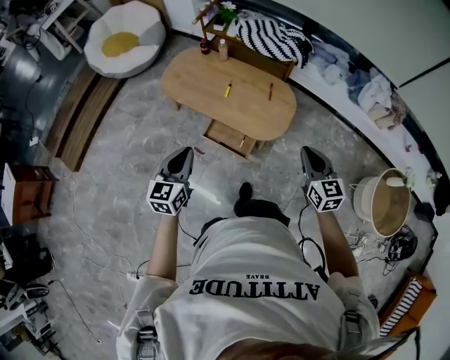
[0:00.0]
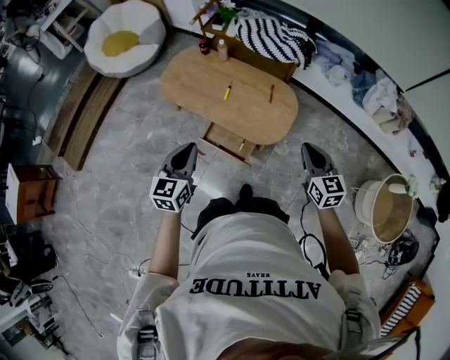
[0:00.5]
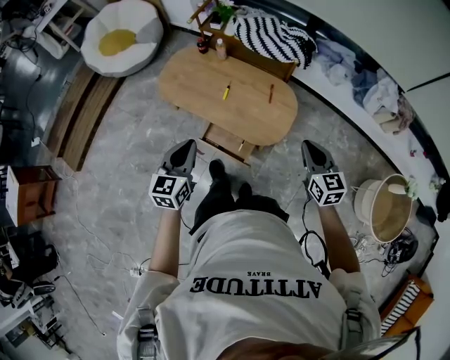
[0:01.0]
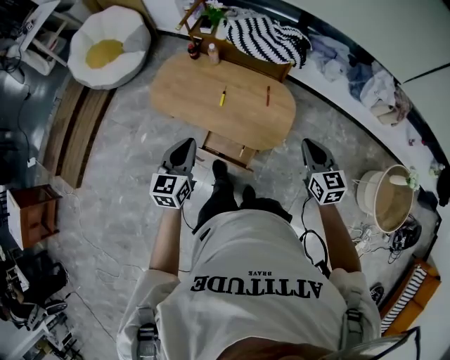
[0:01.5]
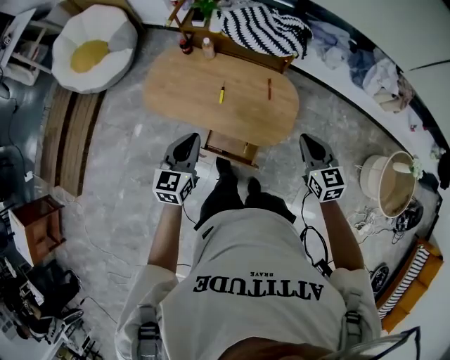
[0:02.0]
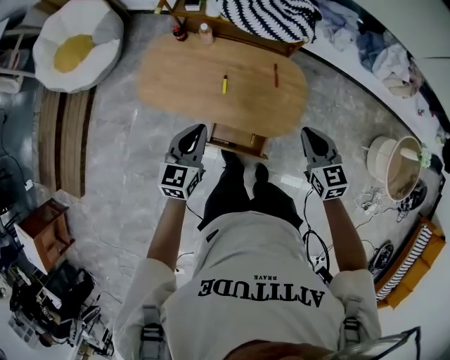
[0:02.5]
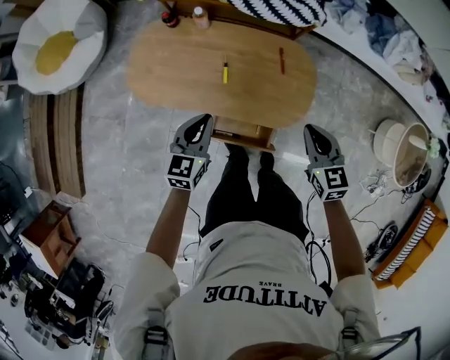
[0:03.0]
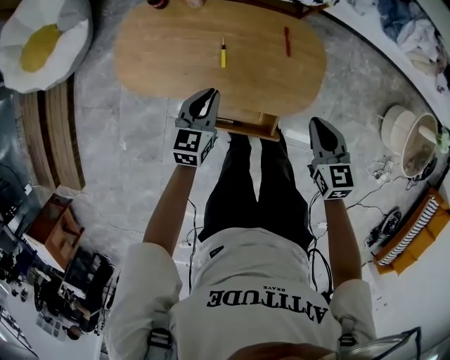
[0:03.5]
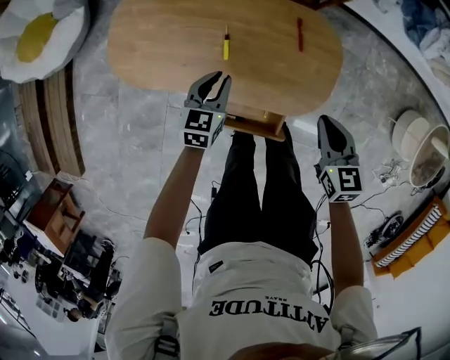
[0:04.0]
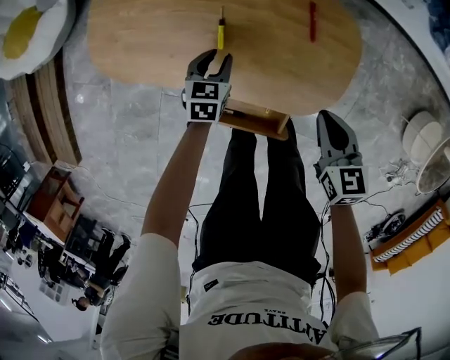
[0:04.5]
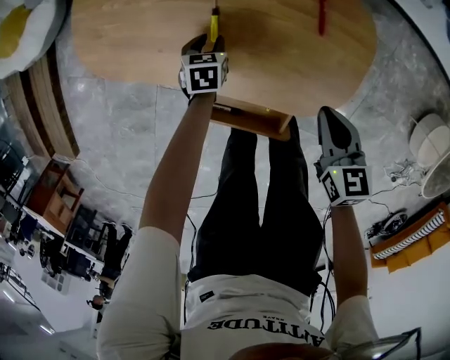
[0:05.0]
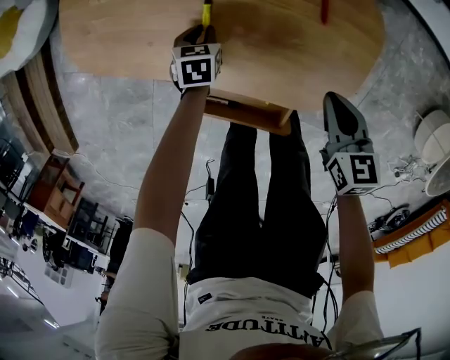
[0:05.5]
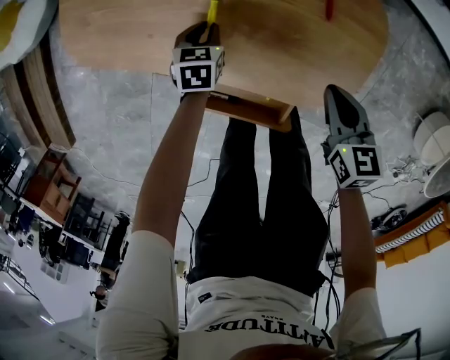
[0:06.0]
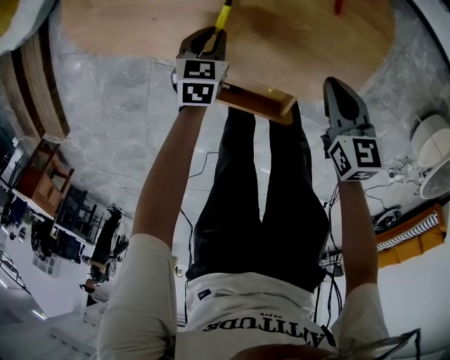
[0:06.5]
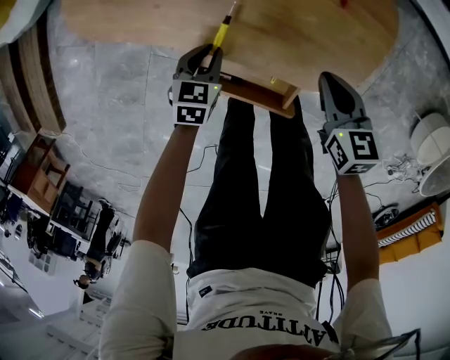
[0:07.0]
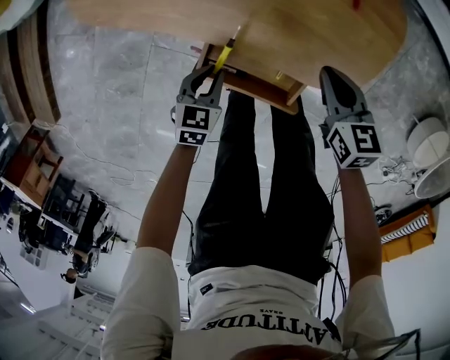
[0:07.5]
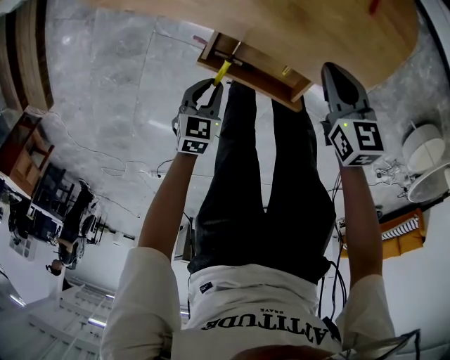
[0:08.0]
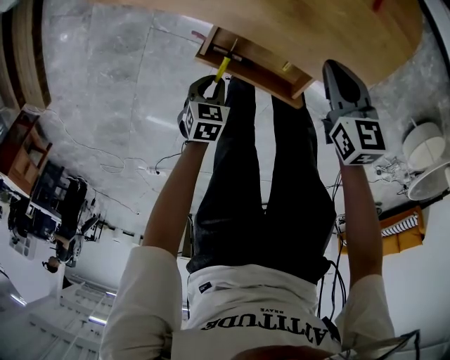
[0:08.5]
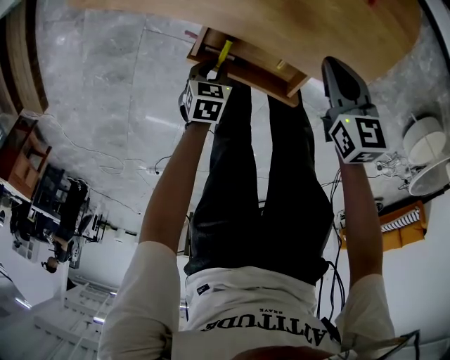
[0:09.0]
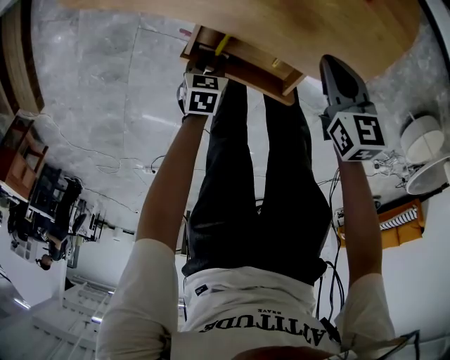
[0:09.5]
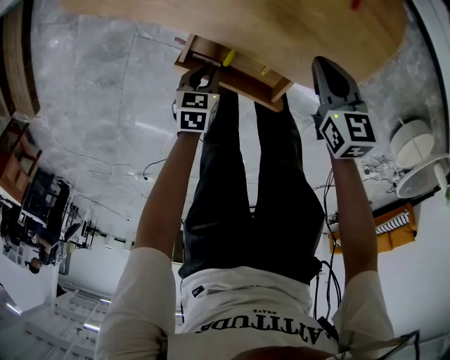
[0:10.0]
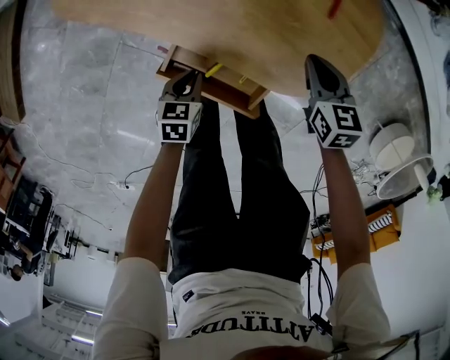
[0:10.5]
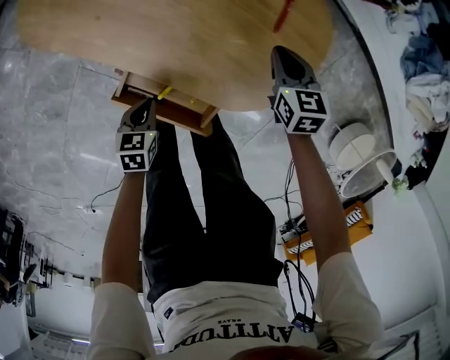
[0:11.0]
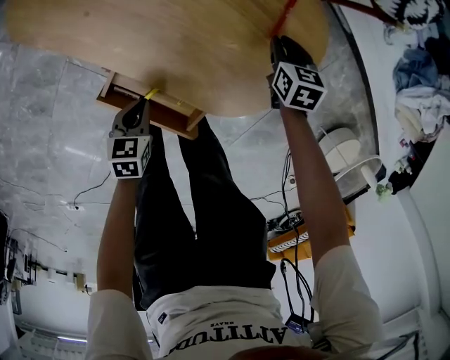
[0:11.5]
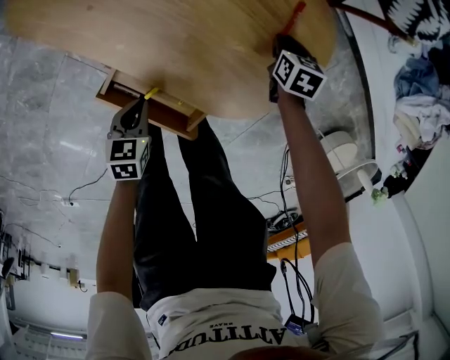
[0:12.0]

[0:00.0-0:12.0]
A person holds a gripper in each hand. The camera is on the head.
0:00.0 to 0:02.0: The grippers both shift forward by roughly 25 cm.
0:02.0 to 0:04.0: The left gripper is displaced downward and forward by some 40 cm, and swivels some 20 degrees. Meanwhile the right gripper heads downward, covering some 25 cm.
0:04.0 to 0:06.0: Both grippers travel together downward, some 25 cm. The left gripper swivels some 30 degrees.
0:06.0 to 0:08.0: The left gripper heads backward, covering roughly 30 cm; the right gripper is displaced to the left by some 10 cm.
0:08.0 to 0:10.0: The left gripper heads downward, covering approximately 5 cm.
0:10.0 to 0:12.0: The right gripper is displaced forward, downward and to the right by approximately 25 cm, and swivels approximately 20 degrees. Meanwhile the left gripper ends up approximately 5 cm from where it was.

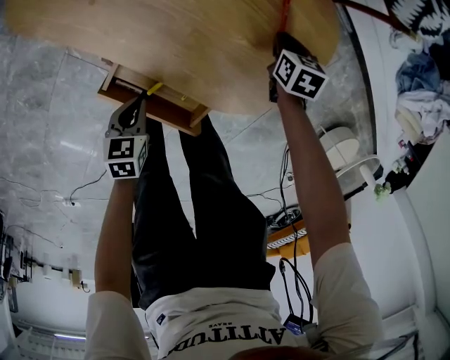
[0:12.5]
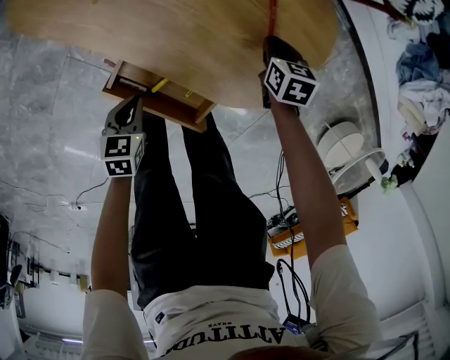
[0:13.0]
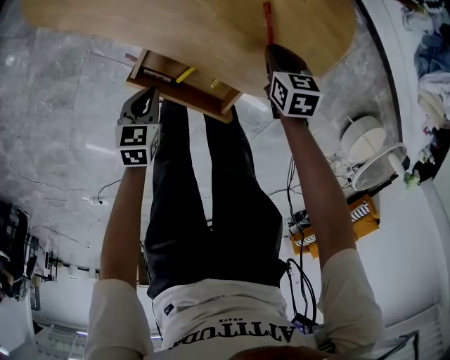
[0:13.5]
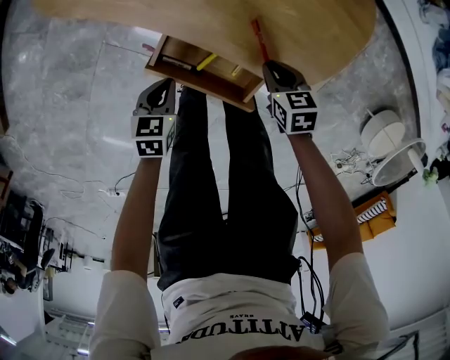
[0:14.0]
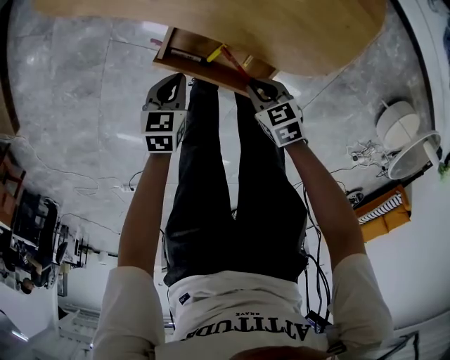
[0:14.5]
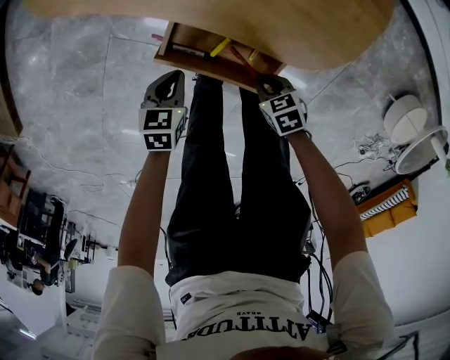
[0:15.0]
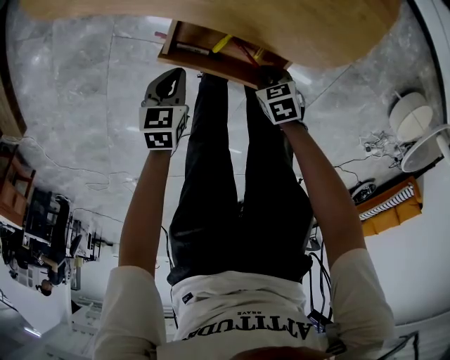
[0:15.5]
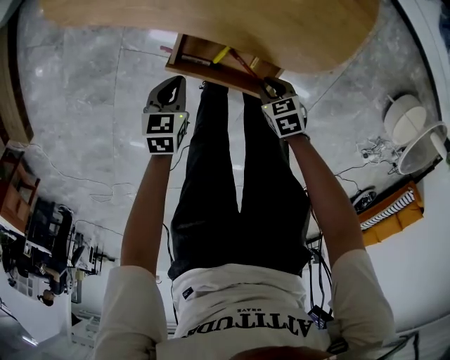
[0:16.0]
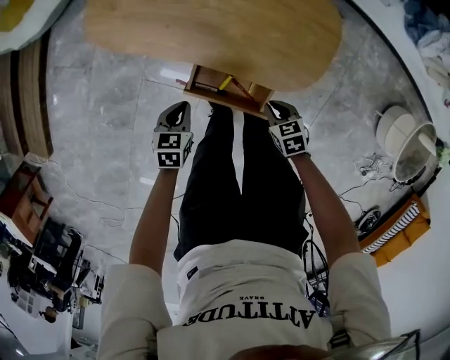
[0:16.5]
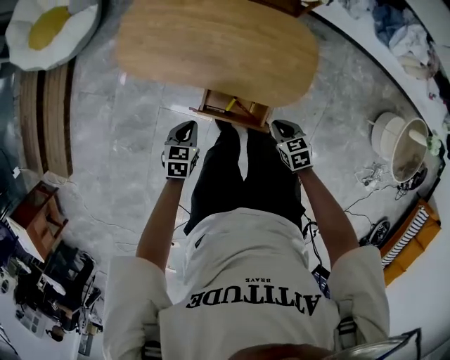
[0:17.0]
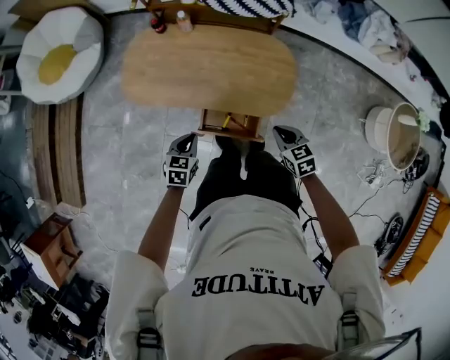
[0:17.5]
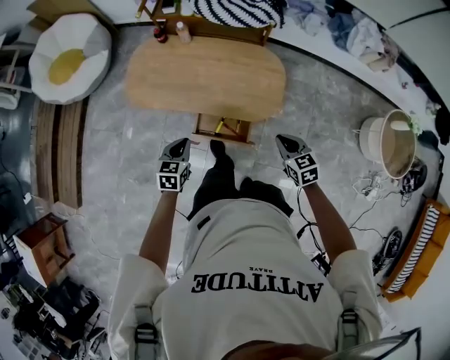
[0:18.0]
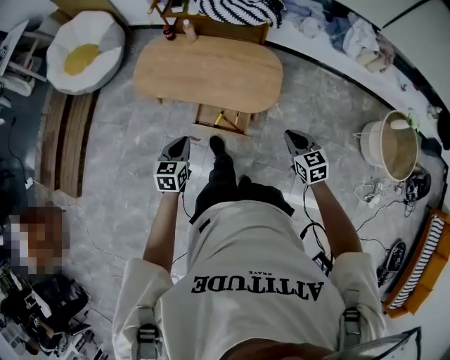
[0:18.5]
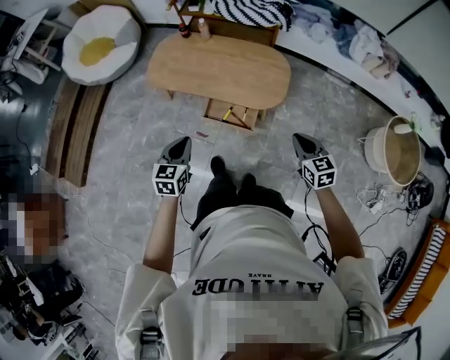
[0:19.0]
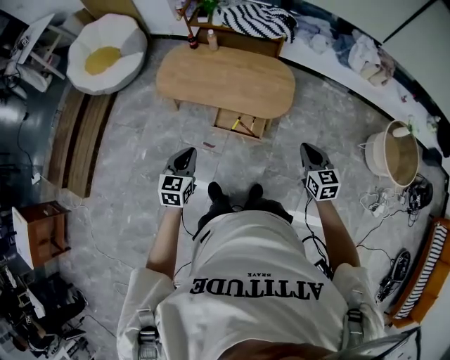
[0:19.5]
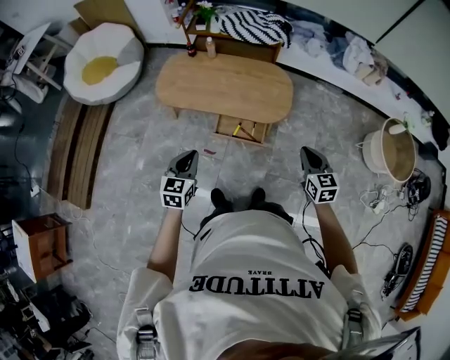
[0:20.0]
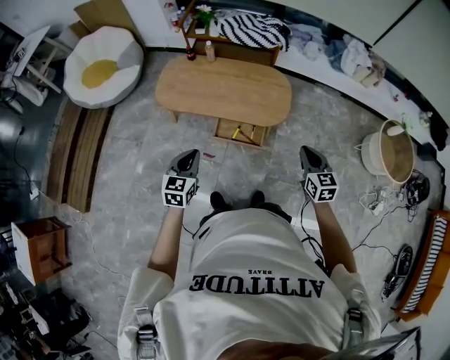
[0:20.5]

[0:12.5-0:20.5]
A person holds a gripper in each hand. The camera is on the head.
0:12.5 to 0:14.5: The left gripper is displaced to the left by about 5 cm, while the right gripper is displaced backward and to the left by some 35 cm, and changes its angle by approximately 30 degrees.
0:14.5 to 0:16.5: Both grippers move upward, some 15 cm.
0:16.5 to 0:18.5: Both grippers move upward and backward, approximately 40 cm. The right gripper turns by some 30 degrees. The left gripper rotates approximately 20 degrees.
0:18.5 to 0:20.5: The right gripper moves upward, backward and to the left, approximately 15 cm; the left gripper travels upward, to the left and backward by roughly 15 cm.

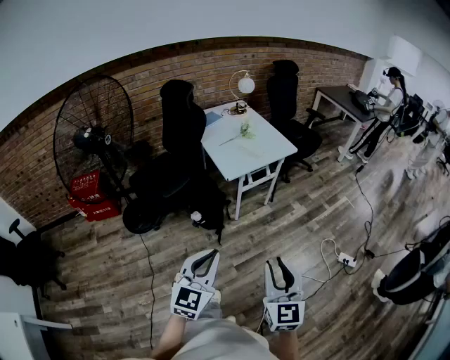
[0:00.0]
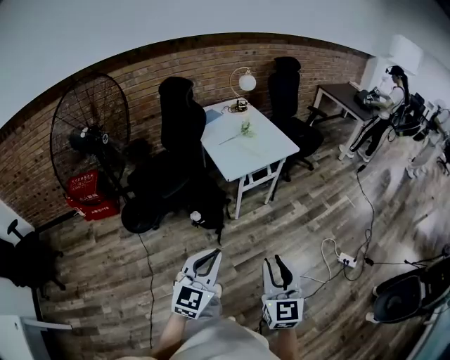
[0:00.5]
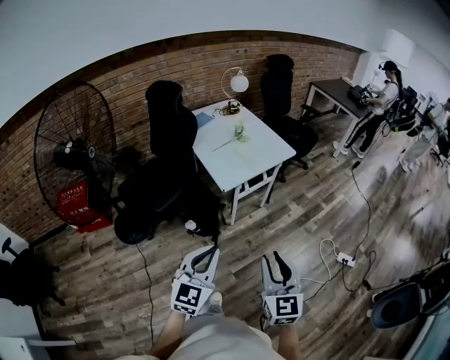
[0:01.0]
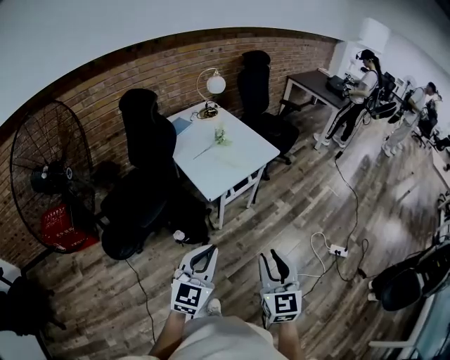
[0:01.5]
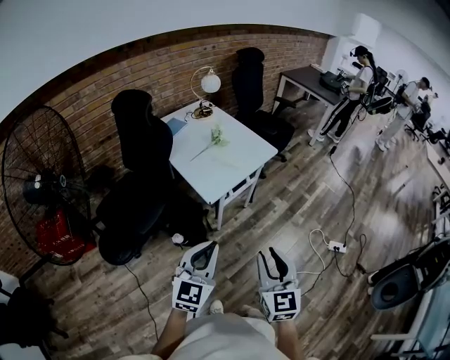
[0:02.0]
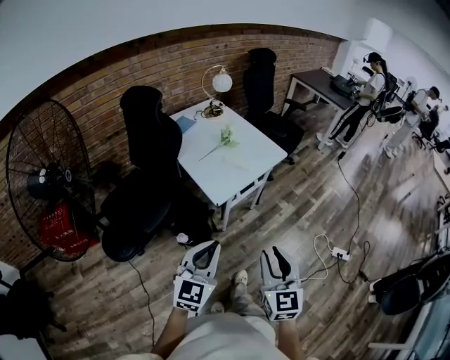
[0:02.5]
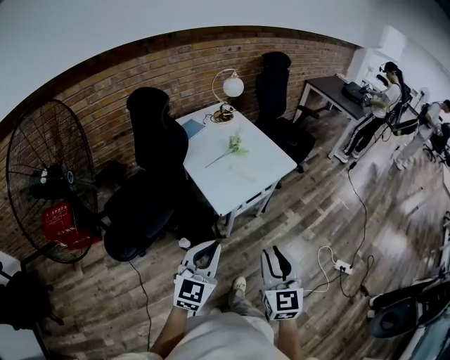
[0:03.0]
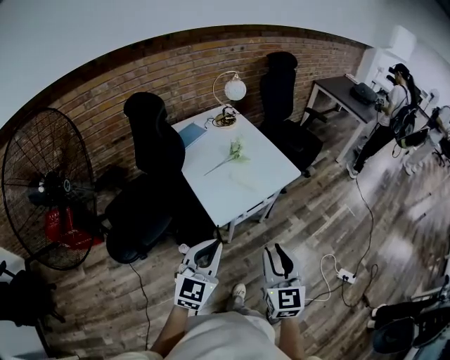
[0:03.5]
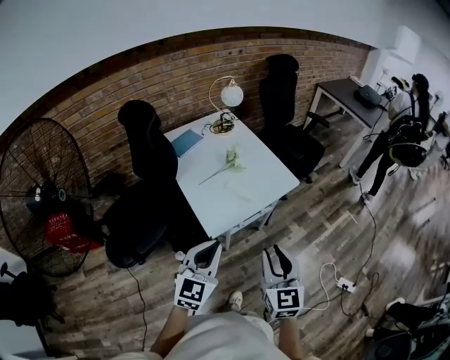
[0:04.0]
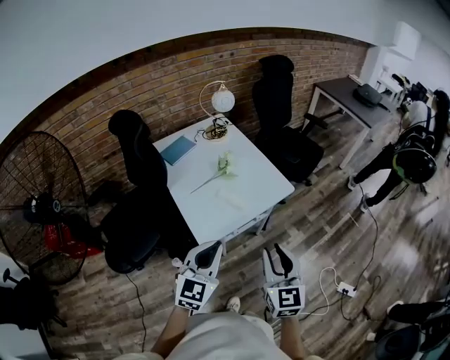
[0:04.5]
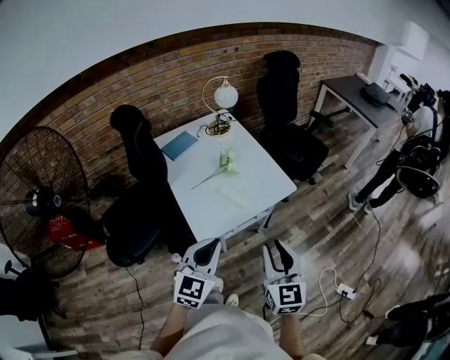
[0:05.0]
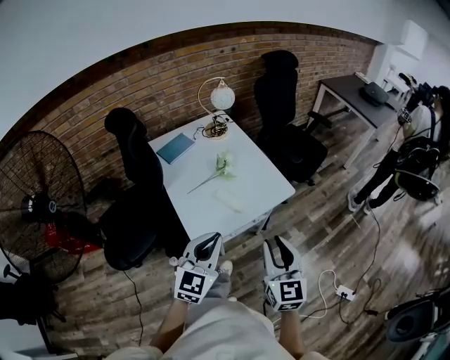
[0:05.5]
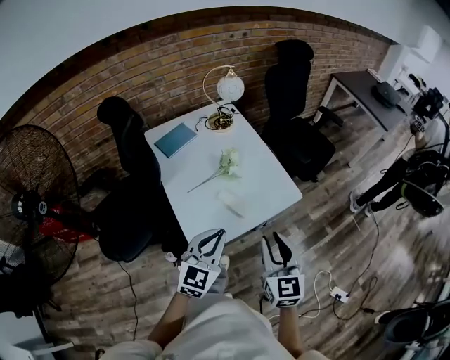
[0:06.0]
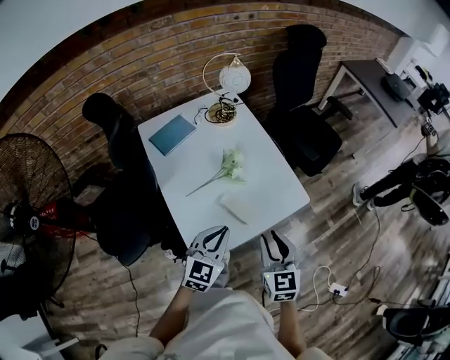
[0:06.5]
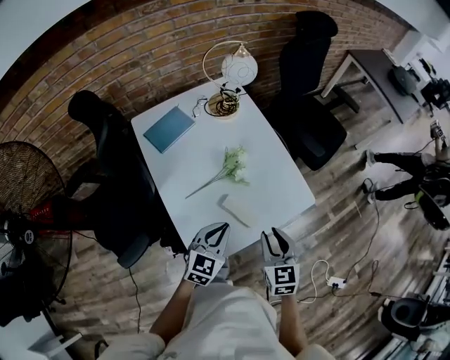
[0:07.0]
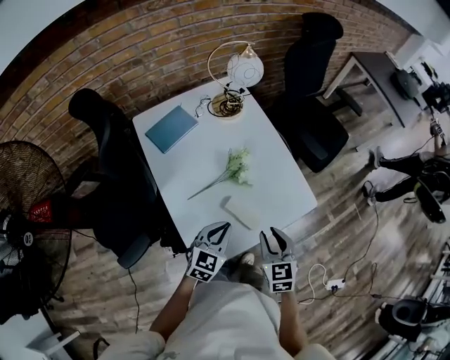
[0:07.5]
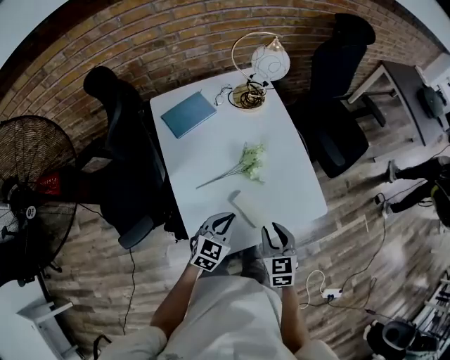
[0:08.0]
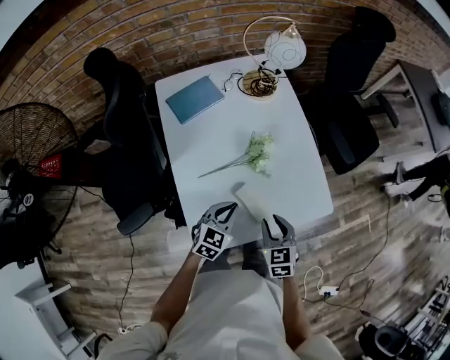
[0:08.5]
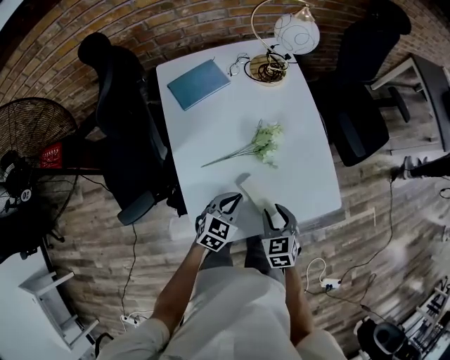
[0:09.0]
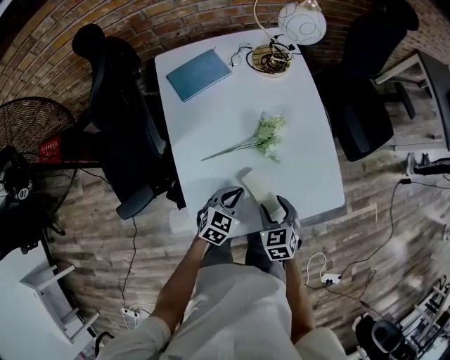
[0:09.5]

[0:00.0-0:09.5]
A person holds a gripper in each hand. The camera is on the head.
0:00.0 to 0:02.0: The left gripper moves forward, some 25 cm, while the right gripper shifts some 25 cm forward and to the left.
0:02.0 to 0:04.0: Both grippers move forward, some 25 cm.
0:04.0 to 0:05.5: The grippers both shift forward and to the right by about 15 cm.
0:05.5 to 0:07.5: The right gripper heads forward, downward and to the left, covering some 30 cm, and turns by approximately 30 degrees. The left gripper goes approximately 30 cm forward and downward, and swivels some 20 degrees.
0:07.5 to 0:09.5: Both grippers travel together downward, about 15 cm. The right gripper rotates approximately 30 degrees.
